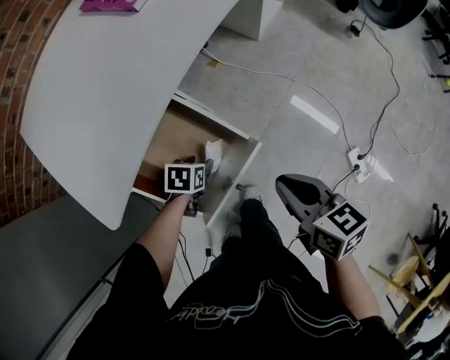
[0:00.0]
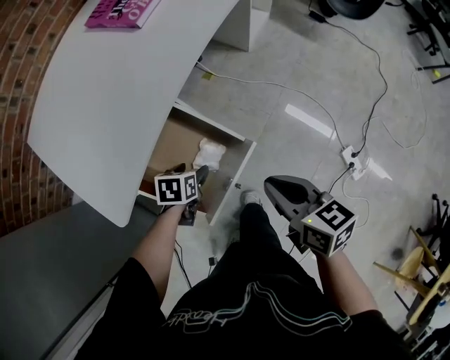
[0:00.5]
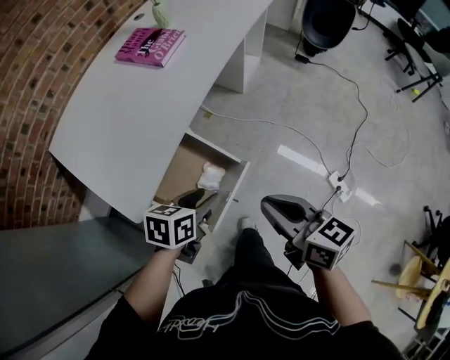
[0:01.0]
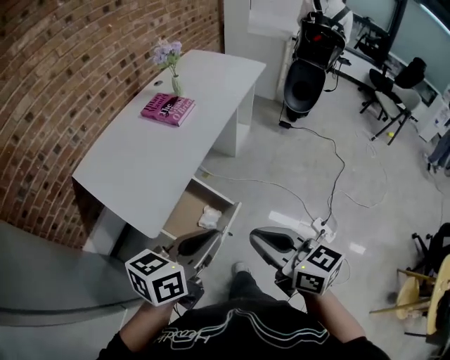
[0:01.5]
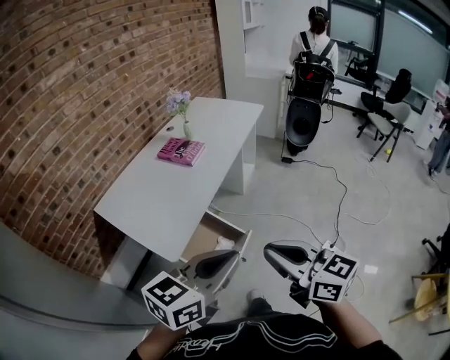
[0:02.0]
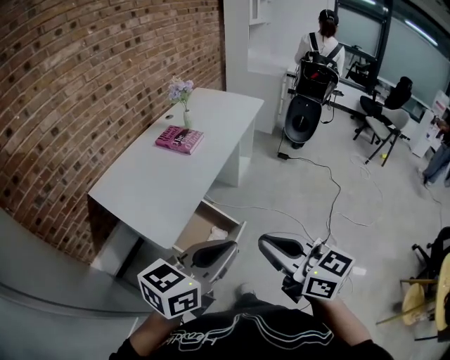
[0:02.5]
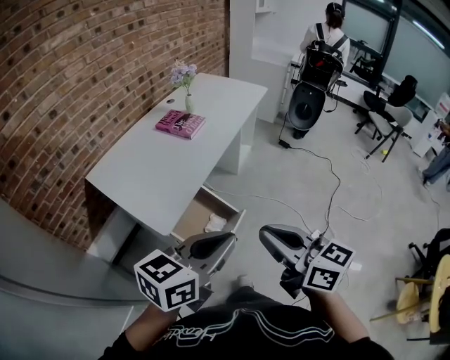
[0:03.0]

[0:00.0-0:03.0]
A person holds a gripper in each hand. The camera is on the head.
0:00.0 to 0:01.5: The left gripper shifts approximately 60 cm upward, tilts its fingers roughly 50 degrees upward, and closes. The right gripper is displaced upward and backward by approximately 40 cm, and swivels roughly 30 degrees.
0:01.5 to 0:03.0: The right gripper heads upward and backward, covering approximately 10 cm; the left gripper travels backward and upward by about 10 cm.

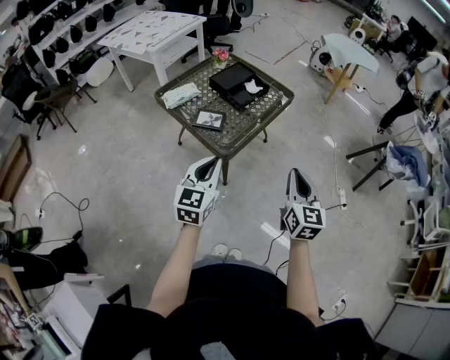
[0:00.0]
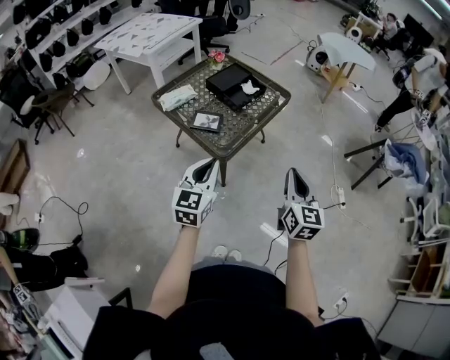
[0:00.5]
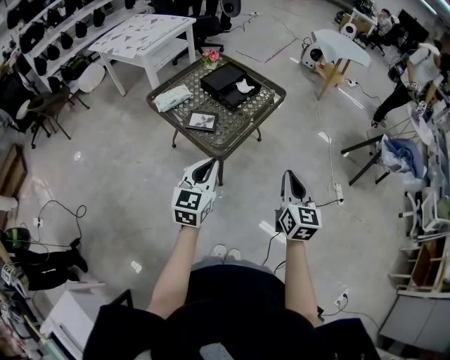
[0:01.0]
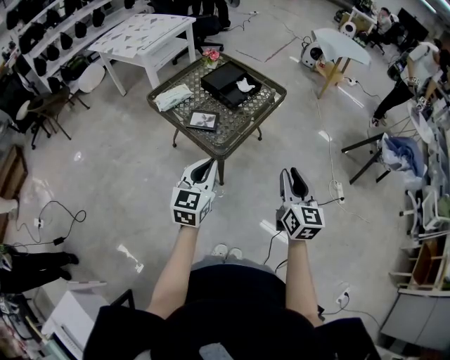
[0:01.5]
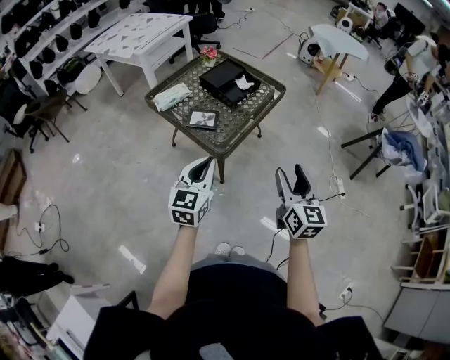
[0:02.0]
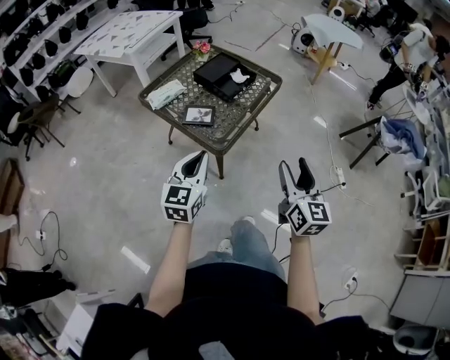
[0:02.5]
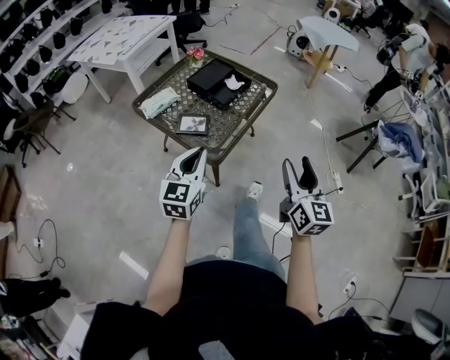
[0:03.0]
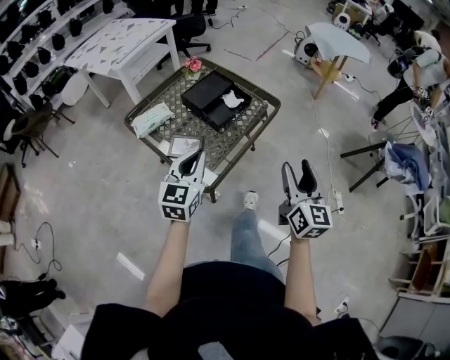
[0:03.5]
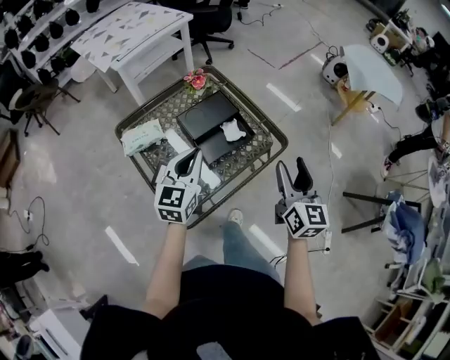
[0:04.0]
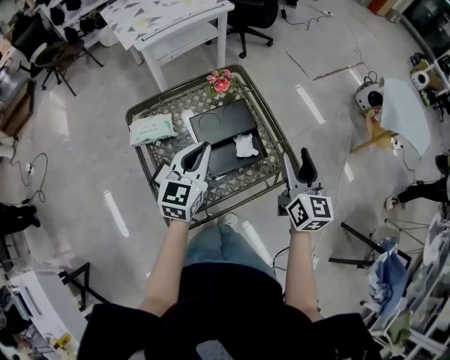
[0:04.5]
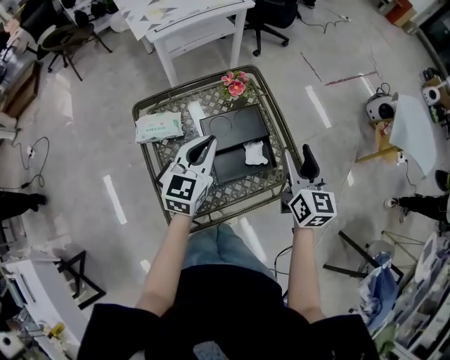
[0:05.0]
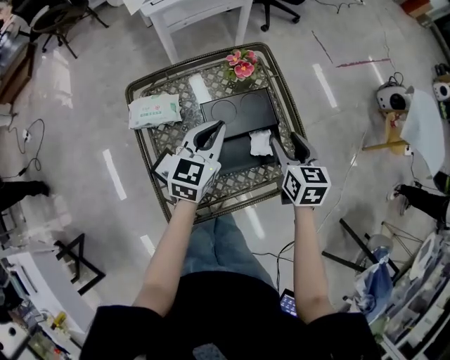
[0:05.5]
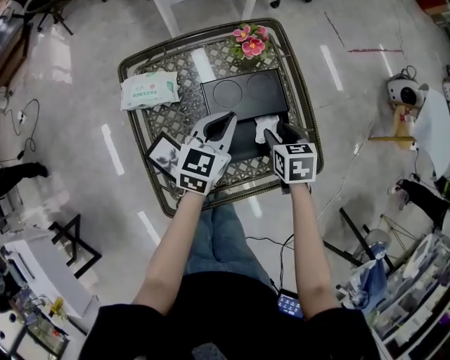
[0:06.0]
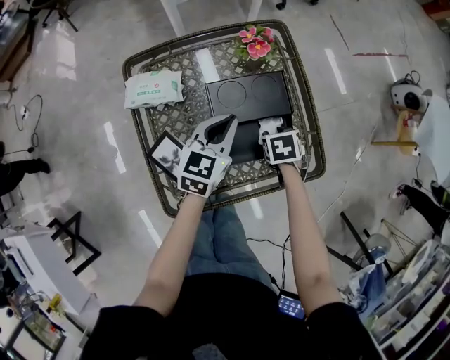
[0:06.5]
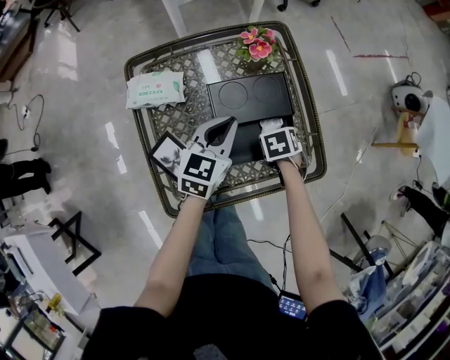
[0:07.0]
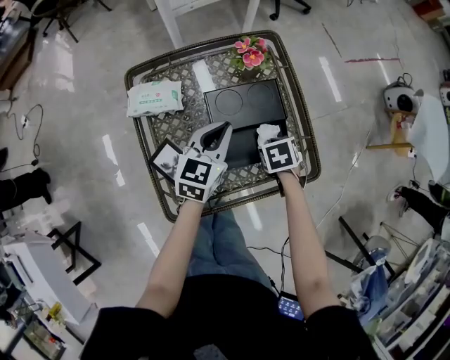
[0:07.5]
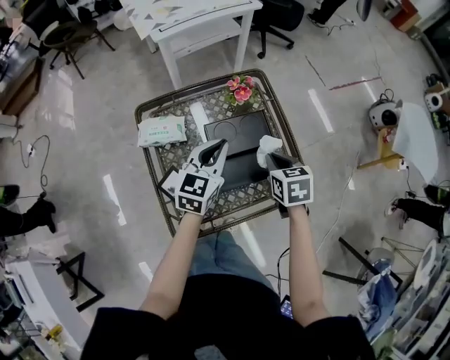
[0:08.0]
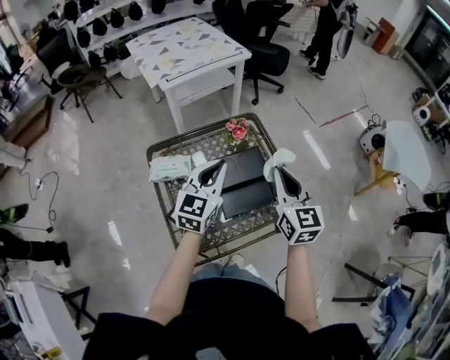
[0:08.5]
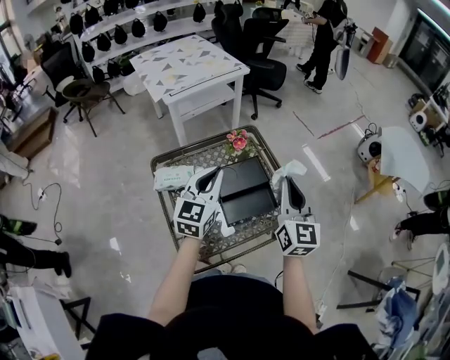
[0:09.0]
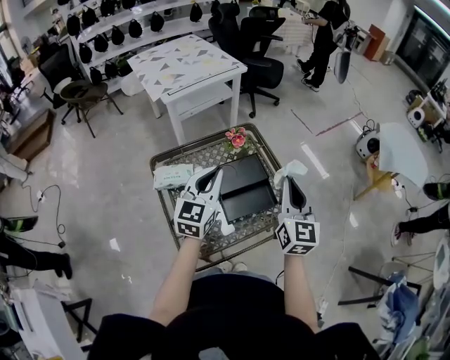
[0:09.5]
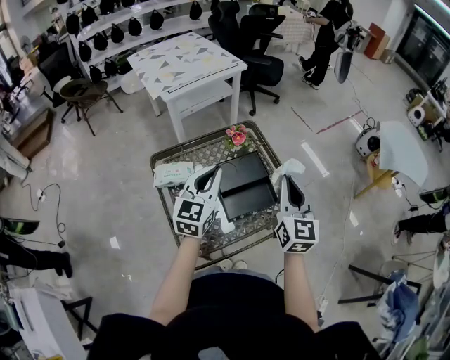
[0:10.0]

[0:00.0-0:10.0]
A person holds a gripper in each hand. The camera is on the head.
0:00.0 to 0:02.0: The right gripper opens up.
0:02.0 to 0:04.0: The pair of grippers is taken forward, about 40 cm.
0:04.0 to 0:06.0: The right gripper heads forward and downward, covering some 35 cm, and angles its fingers downward, by about 50 degrees. The left gripper goes roughly 25 cm forward and downward.
0:06.0 to 0:08.0: Both grippers travel together upward, approximately 10 cm. The right gripper closes its fingers.
0:08.0 to 0:10.0: The left gripper goes some 15 cm upward and backward; the right gripper shifts approximately 20 cm upward and backward, and tilts its fingers about 50 degrees upward.

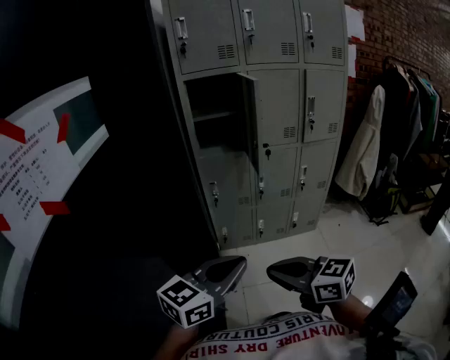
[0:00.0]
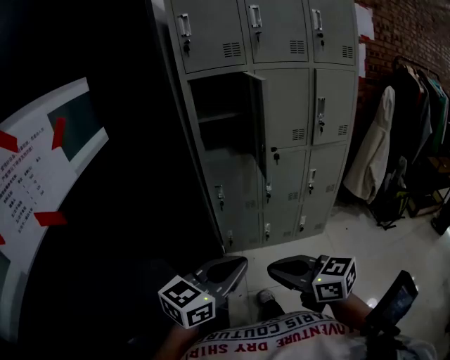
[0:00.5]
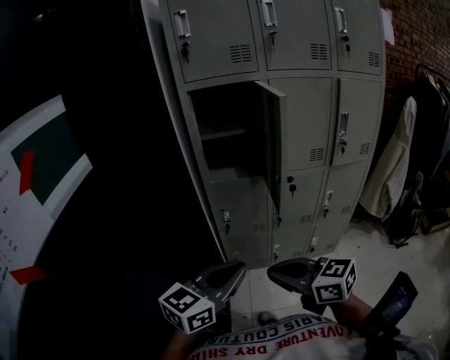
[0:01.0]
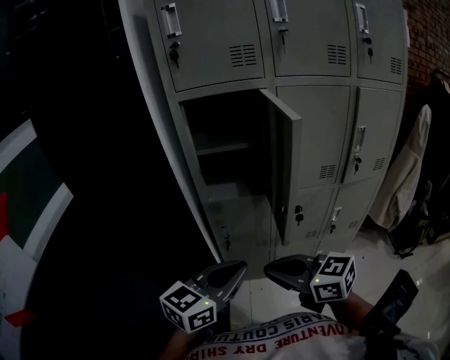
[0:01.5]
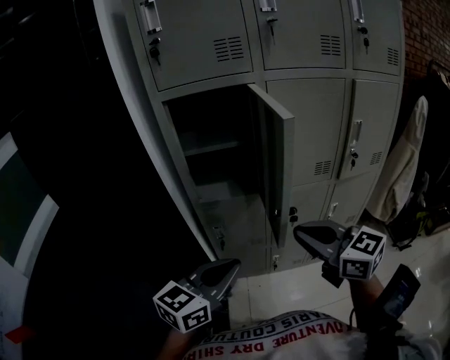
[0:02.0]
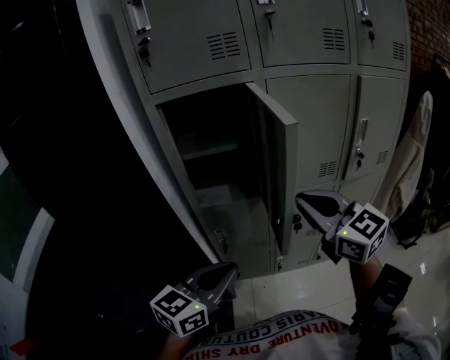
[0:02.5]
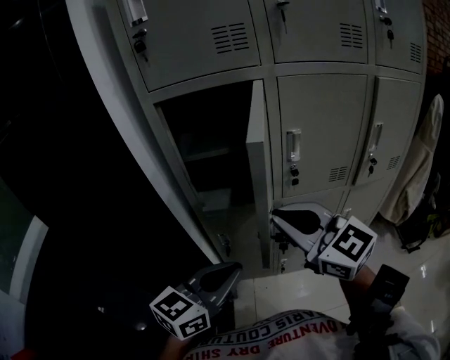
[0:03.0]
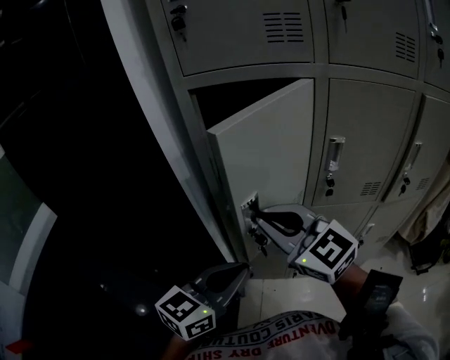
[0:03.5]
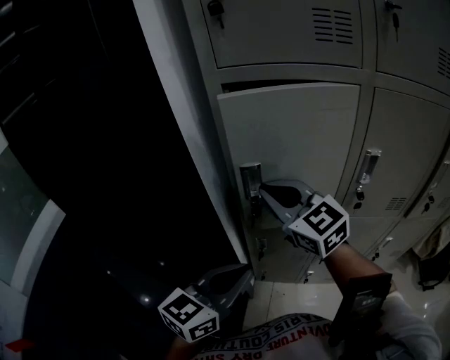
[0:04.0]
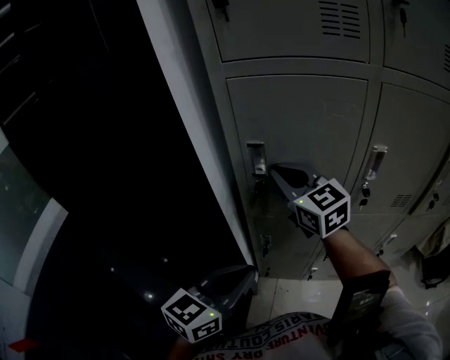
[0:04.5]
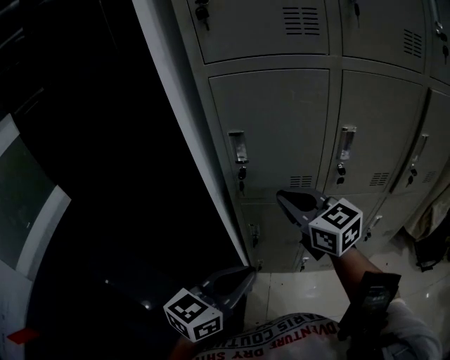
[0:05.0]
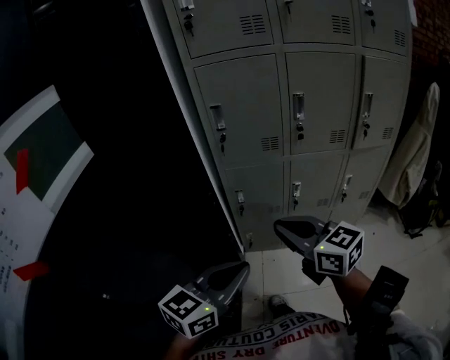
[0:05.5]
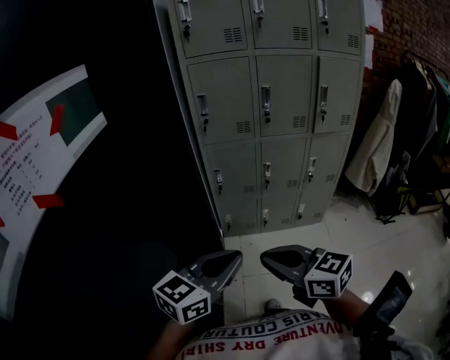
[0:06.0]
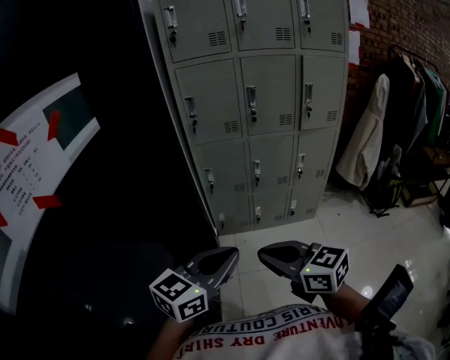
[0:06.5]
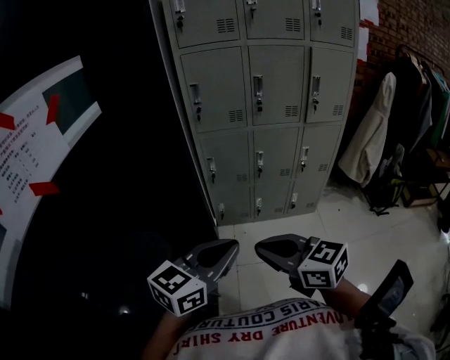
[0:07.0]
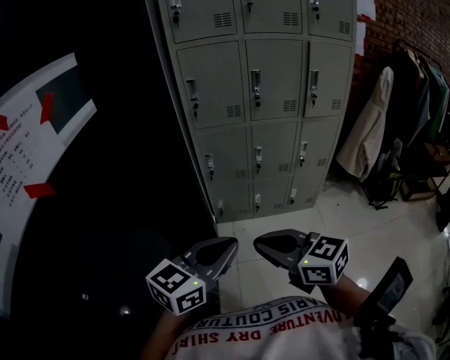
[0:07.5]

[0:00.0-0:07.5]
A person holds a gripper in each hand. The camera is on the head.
0:00.0 to 0:02.0: The two grippers go roughly 35 cm forward.
0:02.0 to 0:04.0: The left gripper moves forward and to the left, roughly 15 cm. Meanwhile the right gripper goes some 30 cm forward and to the left.
0:04.0 to 0:05.5: The two grippers go roughly 30 cm backward. The right gripper changes its angle by about 20 degrees.
0:05.5 to 0:07.5: Both grippers move backward, some 25 cm.

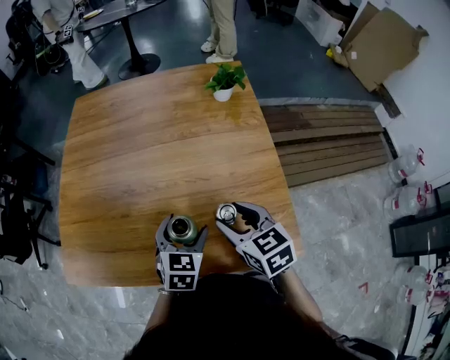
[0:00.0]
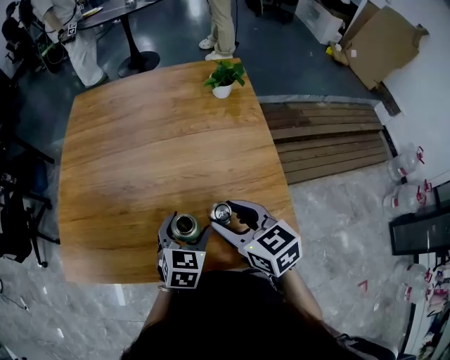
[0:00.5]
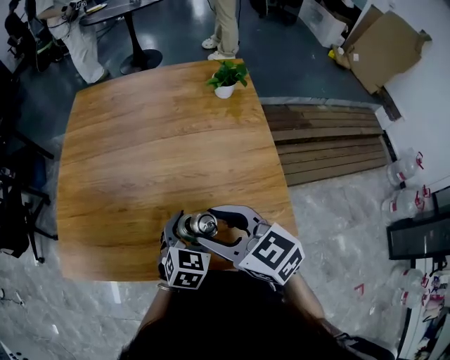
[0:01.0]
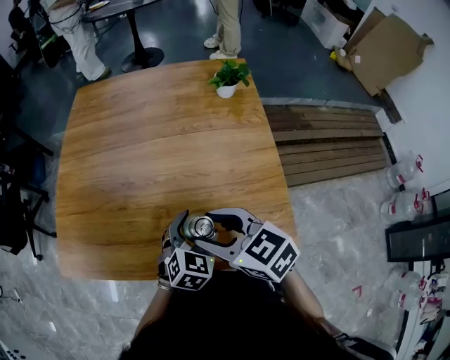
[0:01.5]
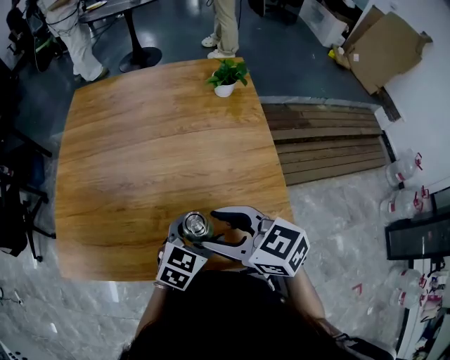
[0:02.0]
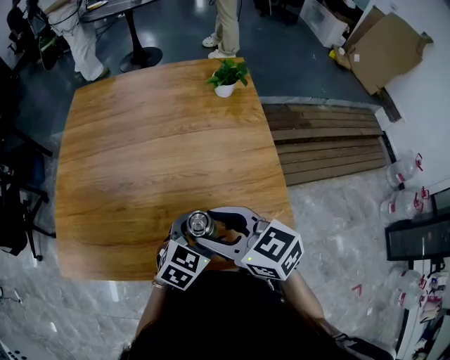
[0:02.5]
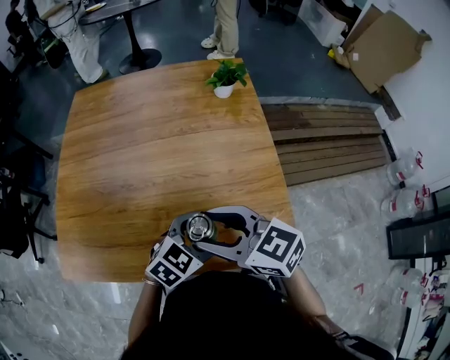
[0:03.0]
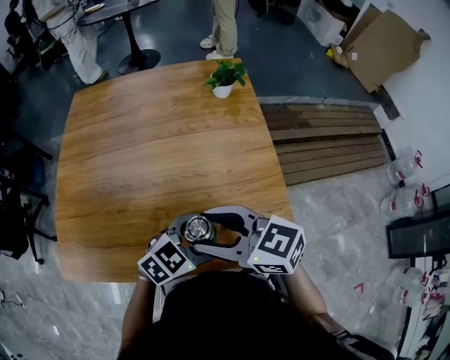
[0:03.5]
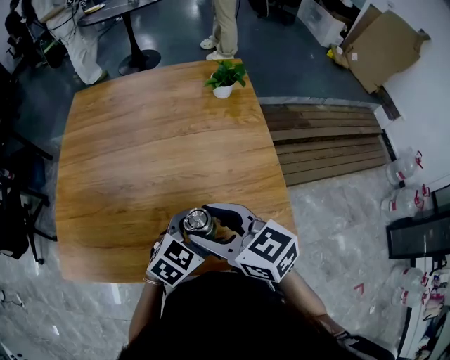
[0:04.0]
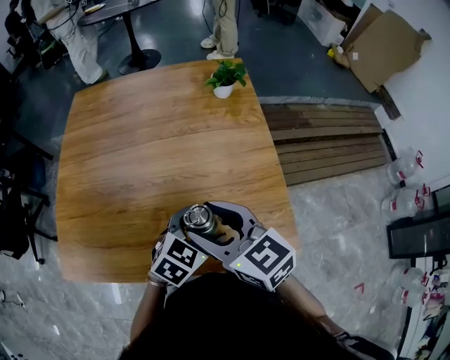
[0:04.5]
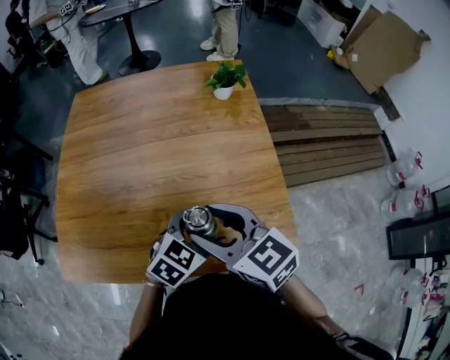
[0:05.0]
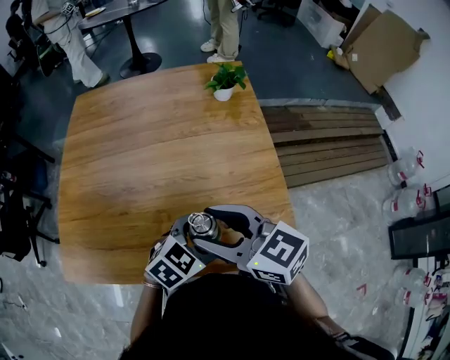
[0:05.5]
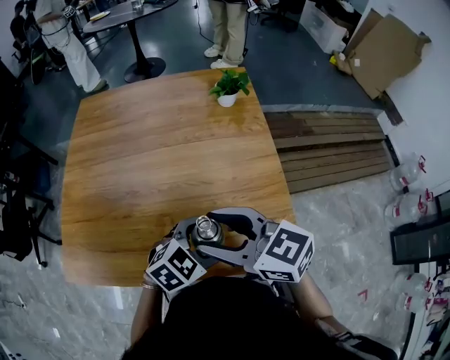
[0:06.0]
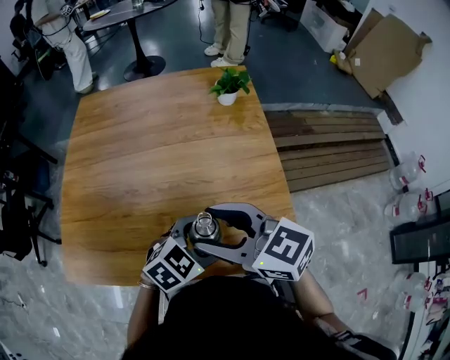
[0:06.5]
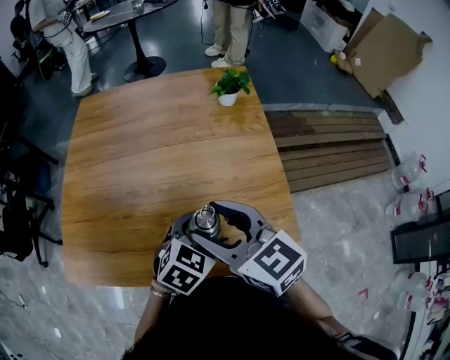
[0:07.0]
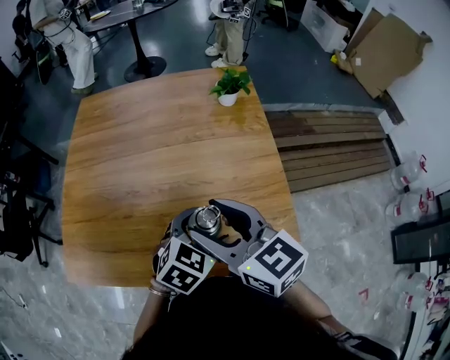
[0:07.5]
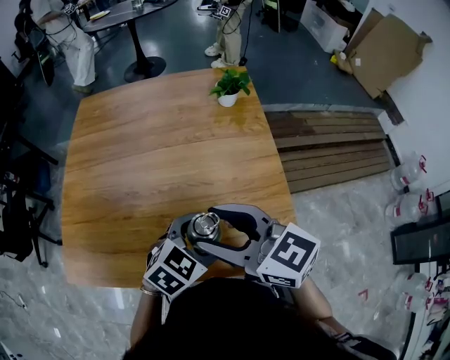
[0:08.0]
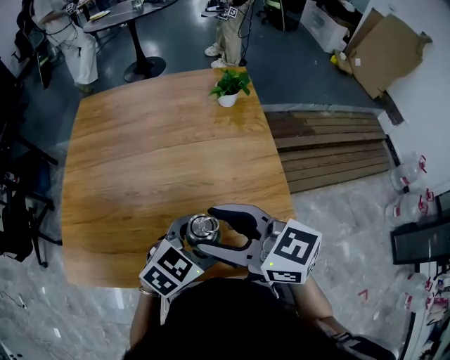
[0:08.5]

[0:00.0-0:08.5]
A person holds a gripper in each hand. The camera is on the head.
0:00.0 to 0:02.0: The right gripper heads upward and to the left, covering approximately 10 cm, and turns by roughly 30 degrees, while the left gripper travels to the right by approximately 5 cm, and changes its angle by approximately 20 degrees.
0:04.0 to 0:06.5: There are only small adjustments of the grippers.
